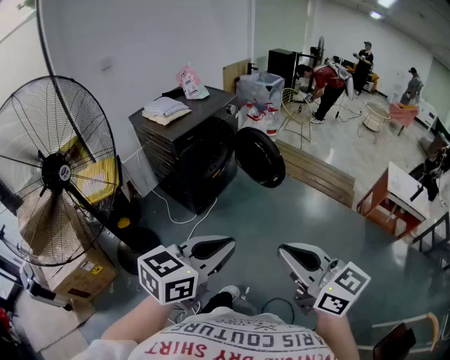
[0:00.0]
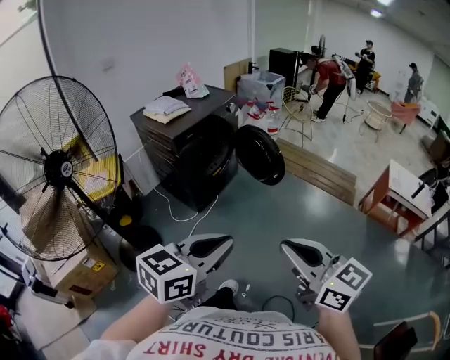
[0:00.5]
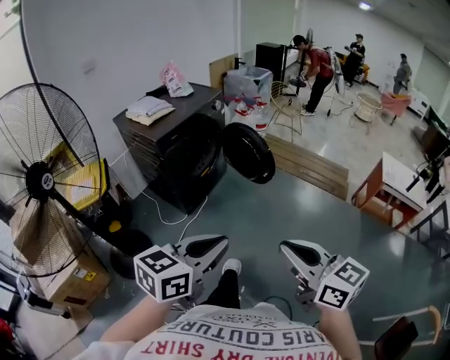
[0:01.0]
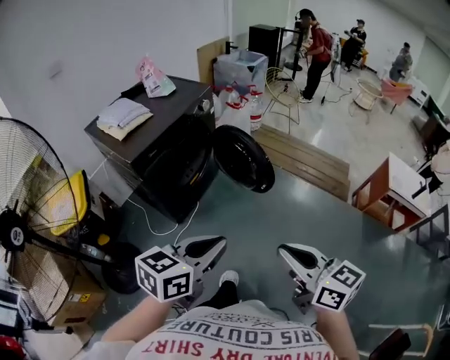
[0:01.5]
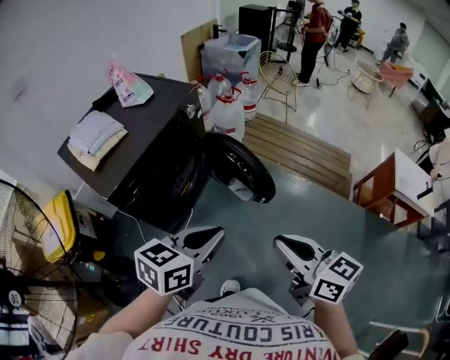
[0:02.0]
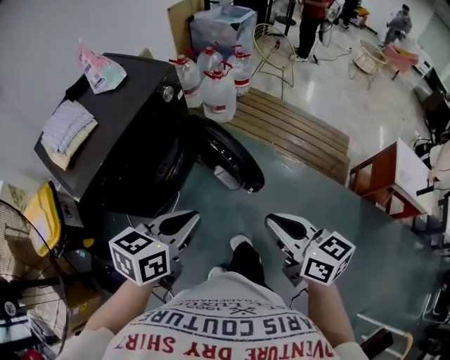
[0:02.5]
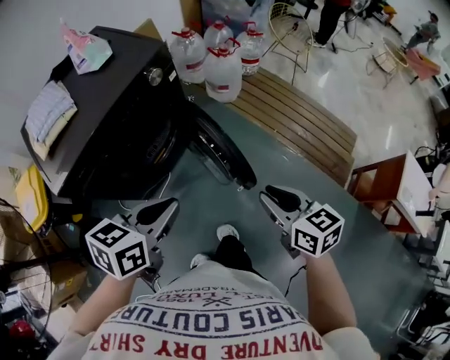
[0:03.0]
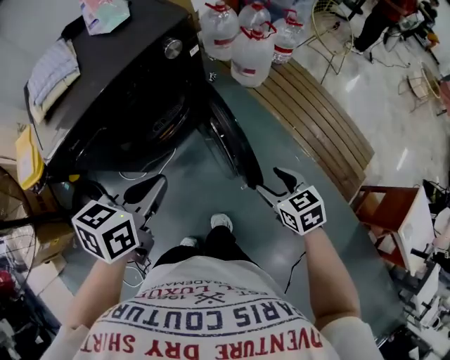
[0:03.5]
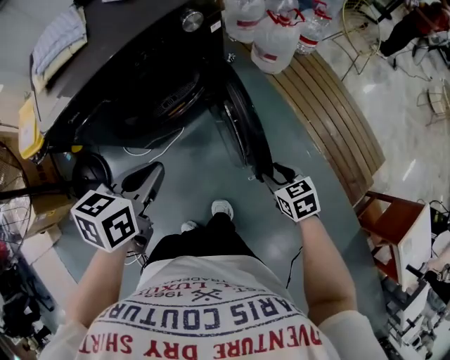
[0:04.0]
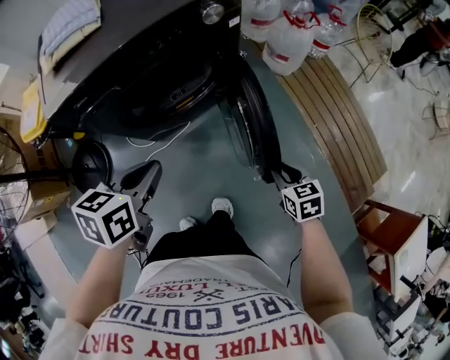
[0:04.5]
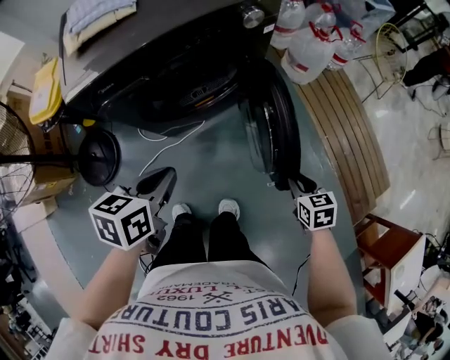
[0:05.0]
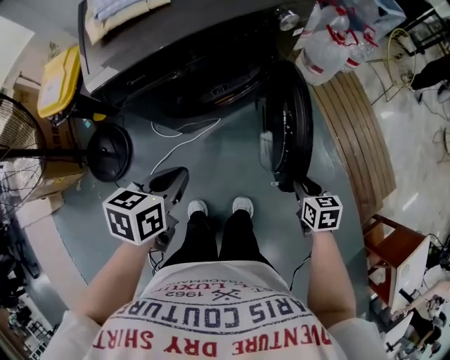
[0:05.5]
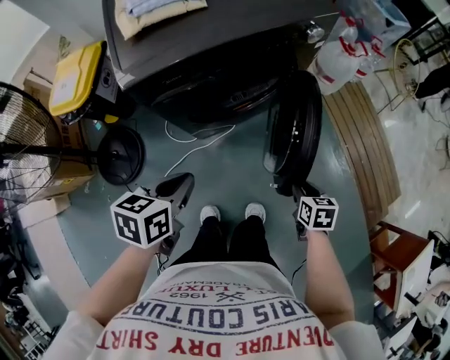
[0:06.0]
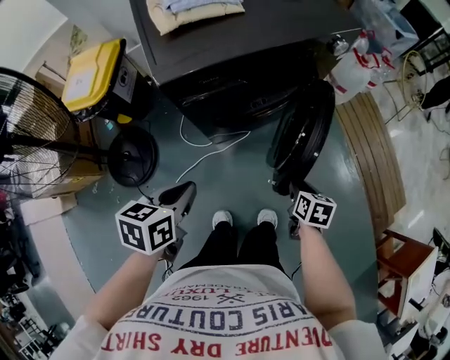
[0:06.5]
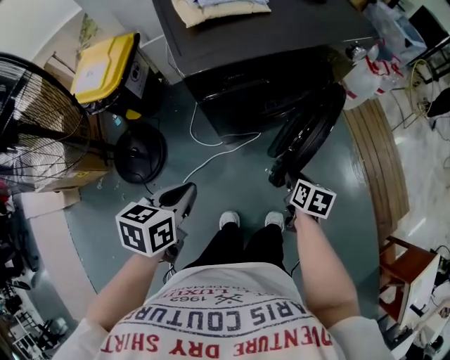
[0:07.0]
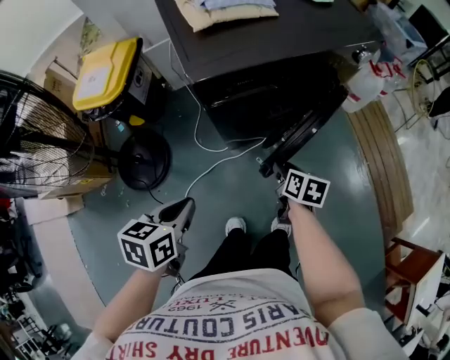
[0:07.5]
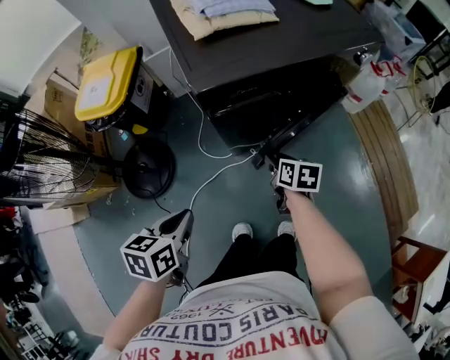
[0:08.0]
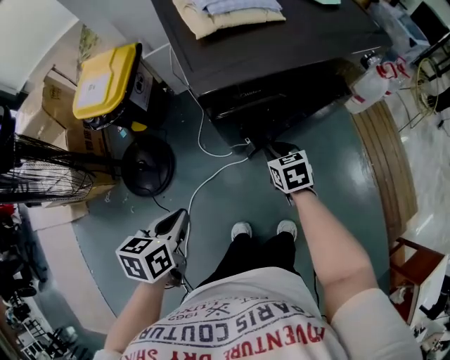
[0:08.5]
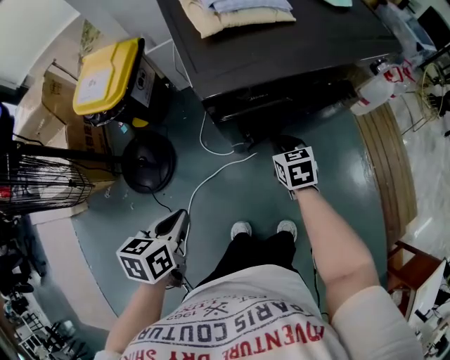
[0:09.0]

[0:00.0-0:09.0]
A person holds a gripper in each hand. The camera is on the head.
0:00.0 to 0:02.0: Both grippers are carried forward, some 40 cm.
0:02.0 to 0:04.5: The right gripper is displaced downward by about 35 cm, angles its fingers downward, by approximately 40 degrees, and opens and closes again. The left gripper goes some 15 cm downward, and rotates roughly 50 degrees.
0:04.5 to 0:07.0: The left gripper is displaced to the left and backward by approximately 30 cm. Meanwhile the right gripper moves to the left, about 30 cm, and rotates approximately 30 degrees.
0:07.0 to 0:09.0: The right gripper goes some 20 cm forward and to the left, and changes its angle by approximately 40 degrees. The left gripper goes approximately 10 cm to the left.

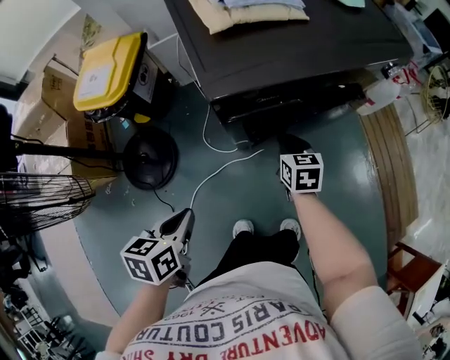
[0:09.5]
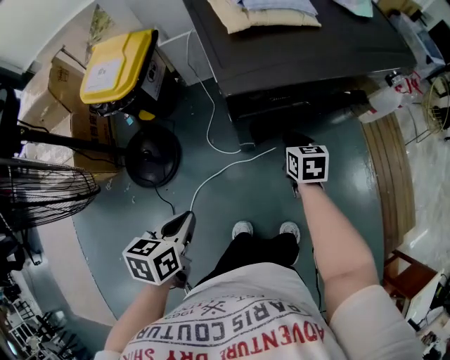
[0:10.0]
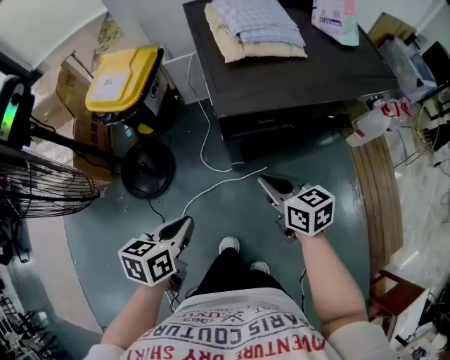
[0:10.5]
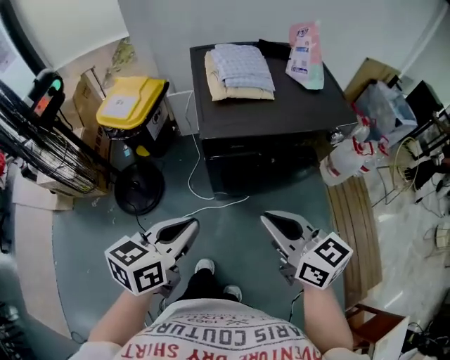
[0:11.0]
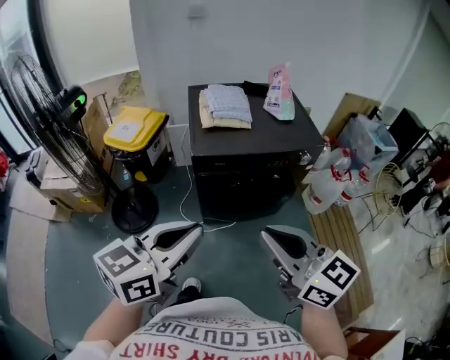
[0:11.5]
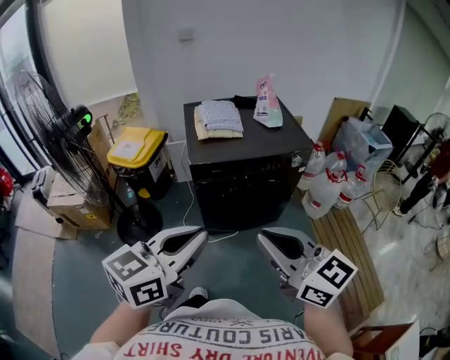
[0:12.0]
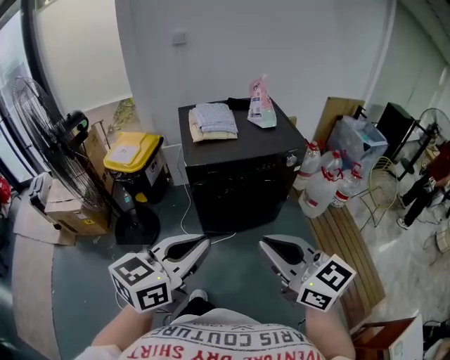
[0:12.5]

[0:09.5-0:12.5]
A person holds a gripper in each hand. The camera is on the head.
0:09.5 to 0:11.0: The right gripper moves upward and backward, roughly 35 cm, and changes its angle by some 40 degrees, while the left gripper heads upward and to the right, covering approximately 25 cm, and swivels approximately 30 degrees.
0:11.0 to 0:12.5: The left gripper goes about 25 cm upward, backward and to the right, and turns by about 20 degrees; the right gripper is displaced backward, upward and to the right by about 20 cm.

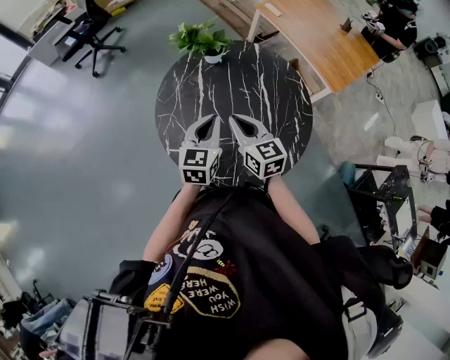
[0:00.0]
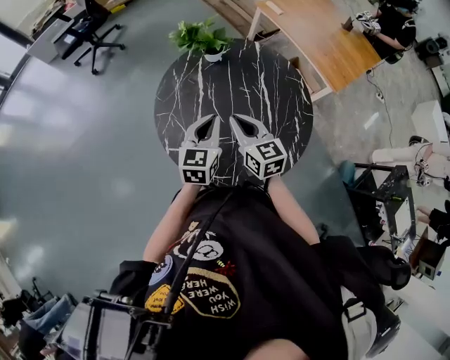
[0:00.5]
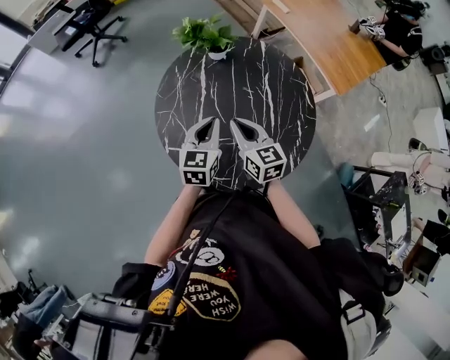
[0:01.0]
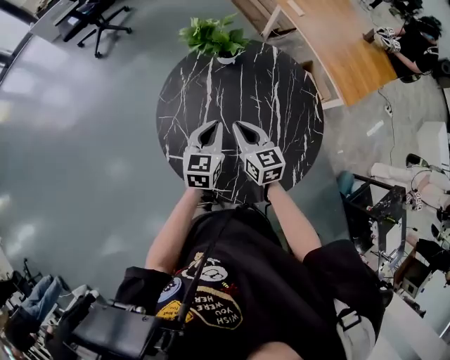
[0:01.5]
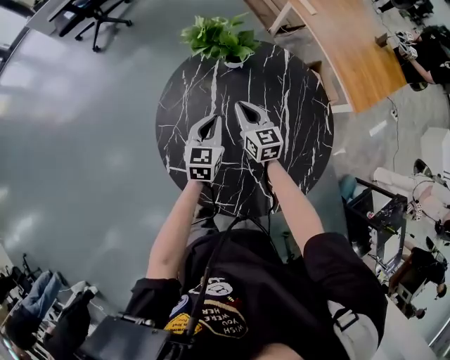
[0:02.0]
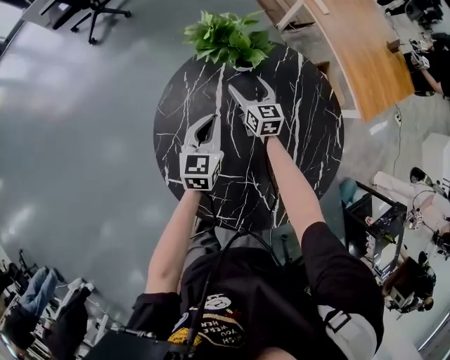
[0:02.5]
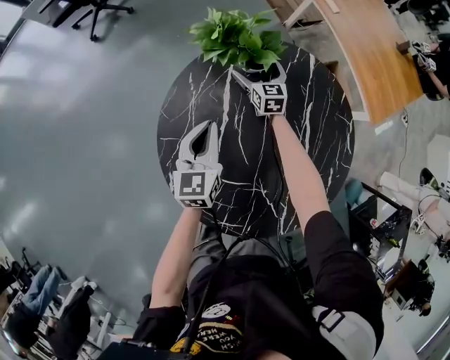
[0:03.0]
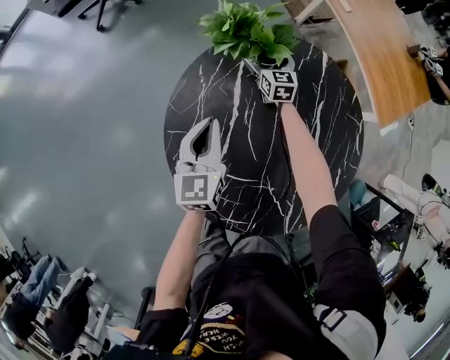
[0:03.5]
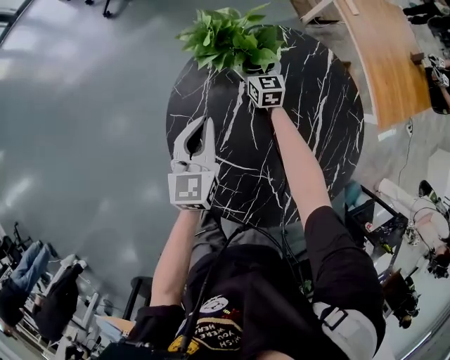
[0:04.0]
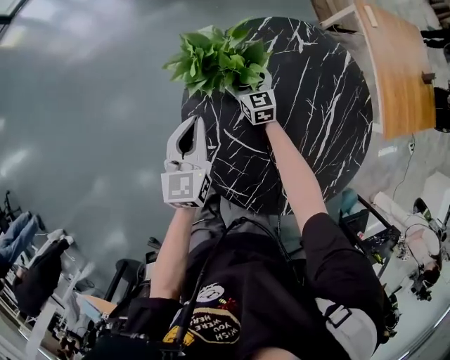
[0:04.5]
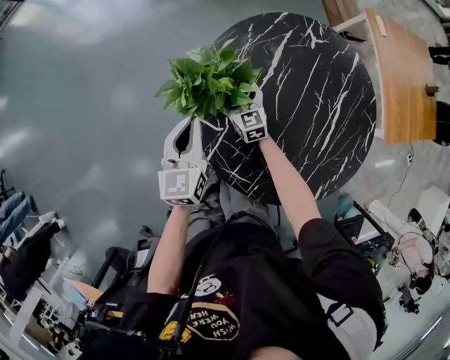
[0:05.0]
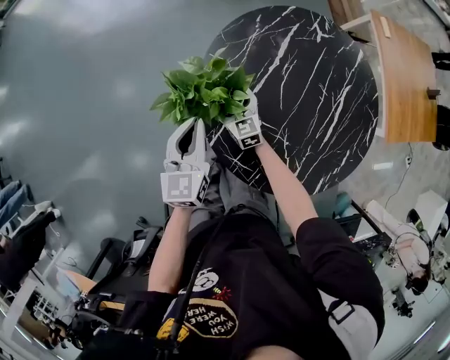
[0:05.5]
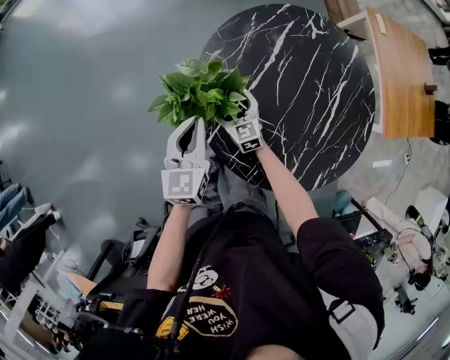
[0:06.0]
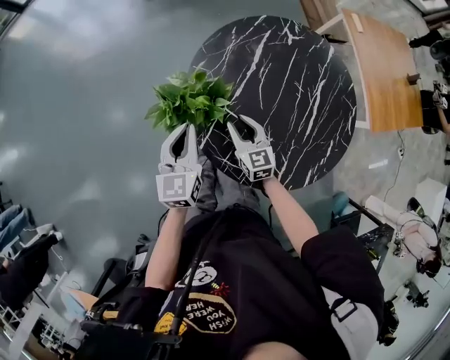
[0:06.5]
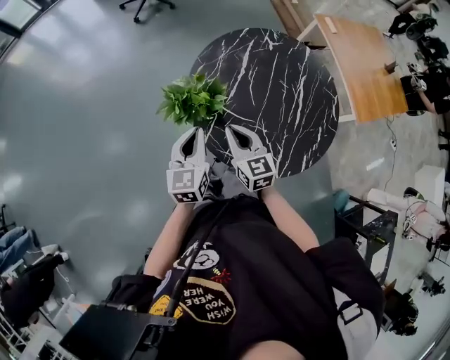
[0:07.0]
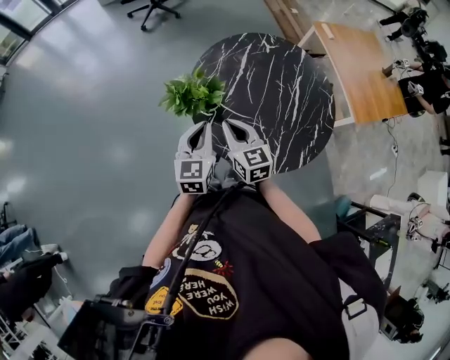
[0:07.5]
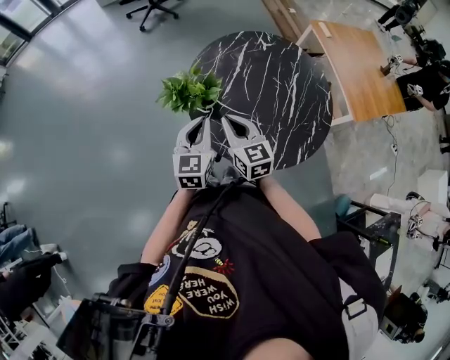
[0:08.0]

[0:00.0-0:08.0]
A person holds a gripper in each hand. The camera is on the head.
0:00.0 to 0:02.0: The right gripper shifts approximately 25 cm forward and downward. Meanwhile the left gripper moves downward and forward, some 20 cm.
0:02.0 to 0:04.0: The left gripper is displaced to the left by roughly 10 cm. Meanwhile the right gripper goes some 20 cm forward and downward, and opens its fingers.
0:04.0 to 0:06.0: The right gripper shifts approximately 40 cm backward and to the left, and changes its angle by about 30 degrees. The left gripper heads backward and to the left, covering some 25 cm.
0:06.0 to 0:08.0: The left gripper goes about 15 cm backward and upward, while the right gripper goes approximately 35 cm upward and backward, and closes its fingers.

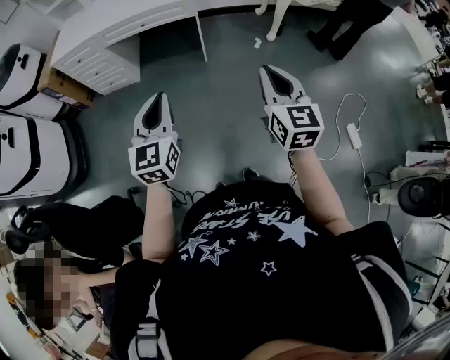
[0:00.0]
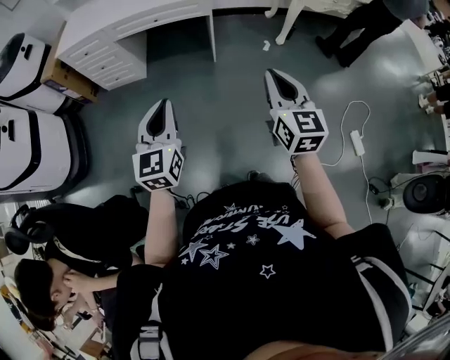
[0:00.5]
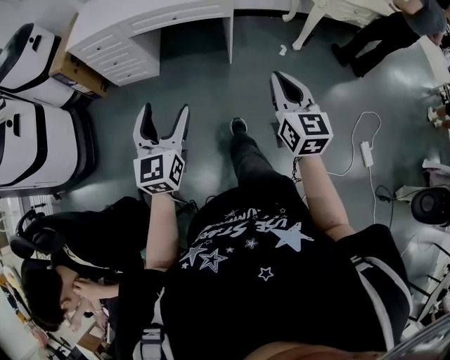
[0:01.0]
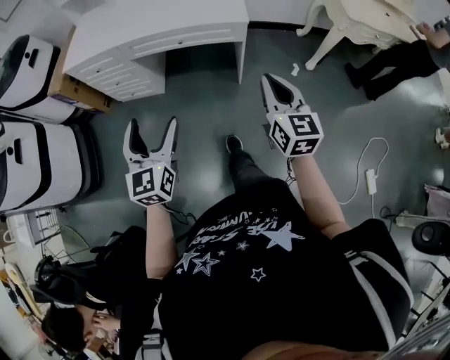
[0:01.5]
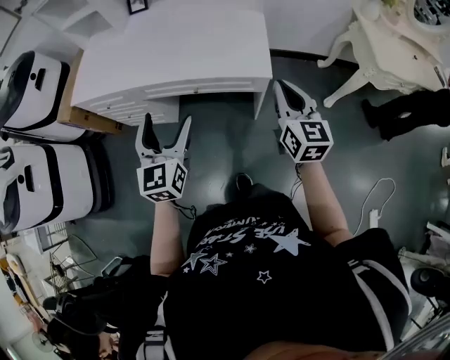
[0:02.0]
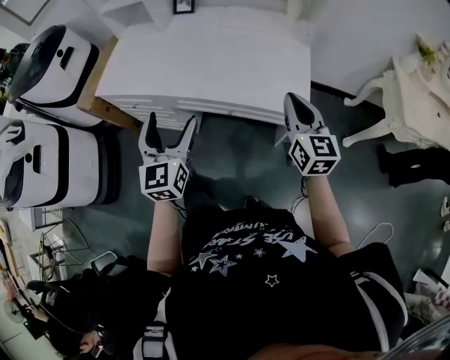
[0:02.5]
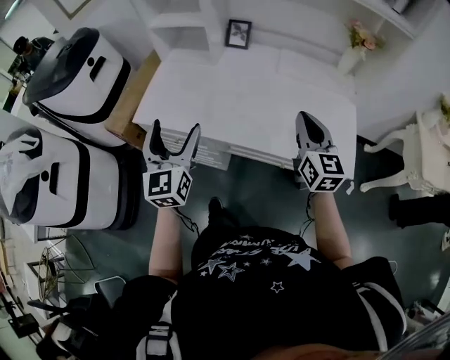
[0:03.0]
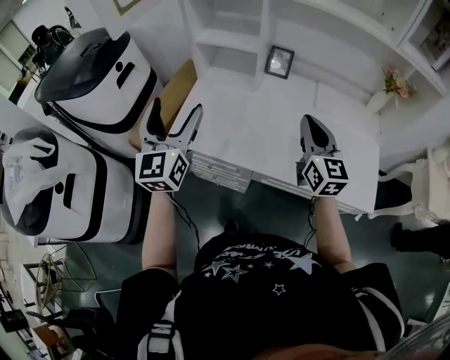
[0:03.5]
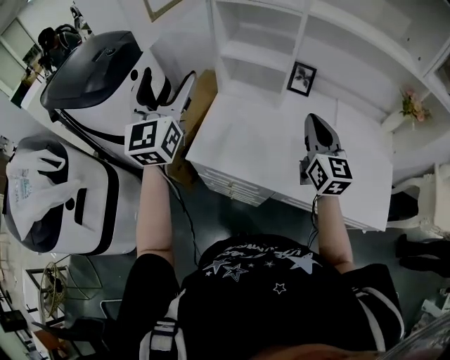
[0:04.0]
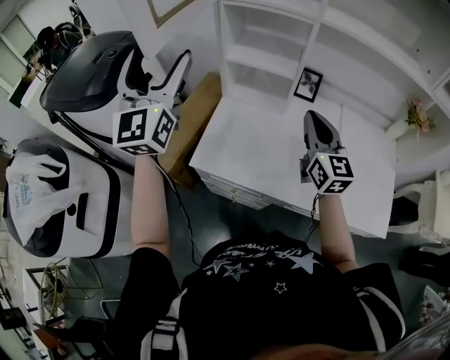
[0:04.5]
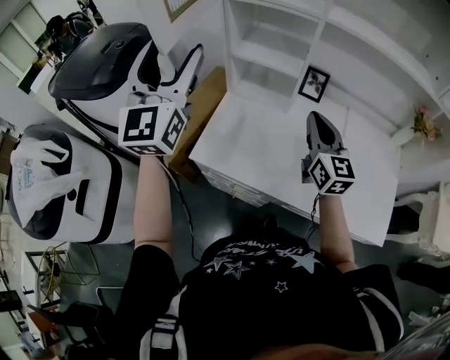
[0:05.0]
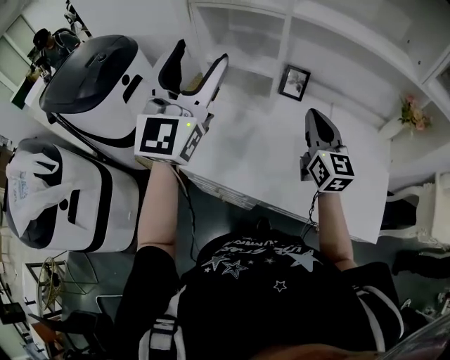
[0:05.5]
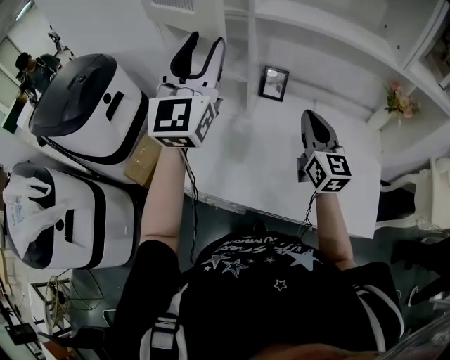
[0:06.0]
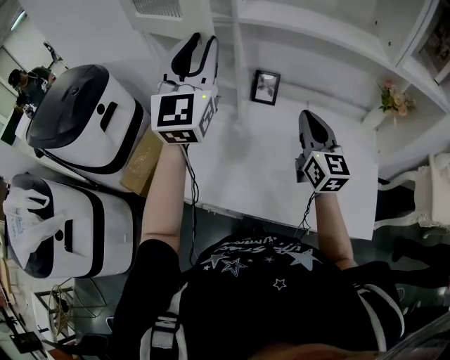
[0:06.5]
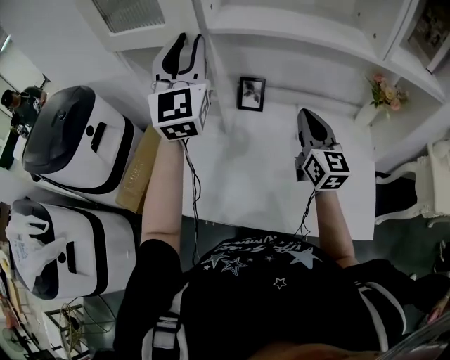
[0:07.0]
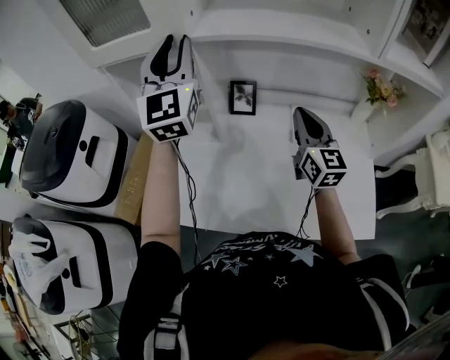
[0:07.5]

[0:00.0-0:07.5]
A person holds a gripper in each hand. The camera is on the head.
0:00.0 to 0:02.0: The pair of grippers is taken forward, roughly 50 cm. The left gripper opens its fingers.
0:02.0 to 0:04.0: Both grippers are carried to the left and forward, roughly 70 cm. The left gripper turns by approximately 30 degrees.
0:04.0 to 0:05.5: The left gripper heads to the right and upward, covering approximately 15 cm, while the right gripper is displaced to the right by roughly 5 cm.
0:05.5 to 0:07.5: The right gripper heads to the right and forward, covering roughly 20 cm, while the left gripper travels forward and to the right by some 25 cm, and closes up.
